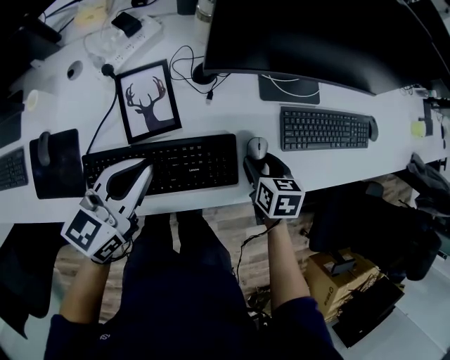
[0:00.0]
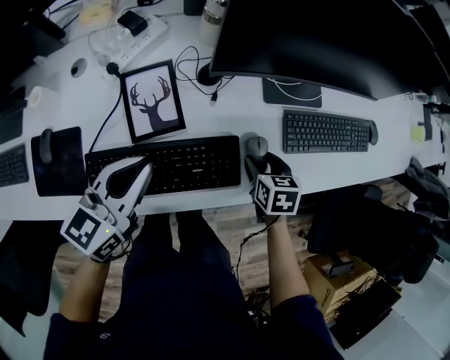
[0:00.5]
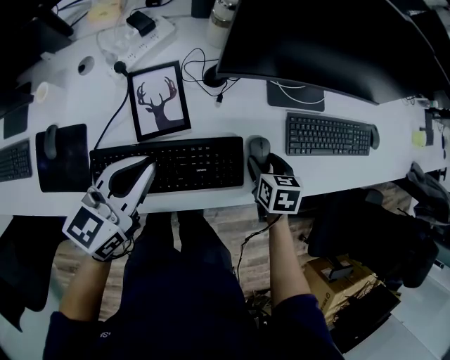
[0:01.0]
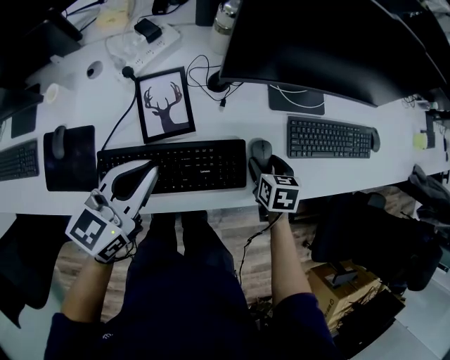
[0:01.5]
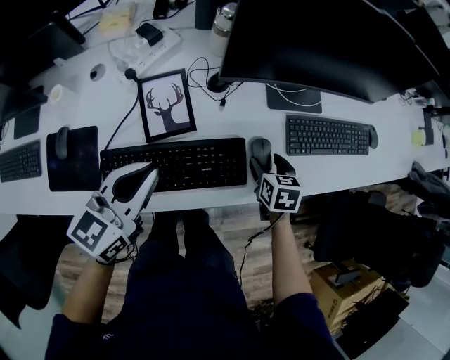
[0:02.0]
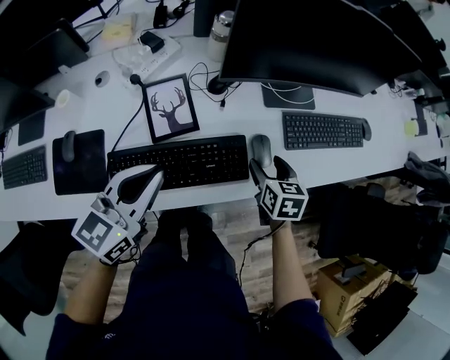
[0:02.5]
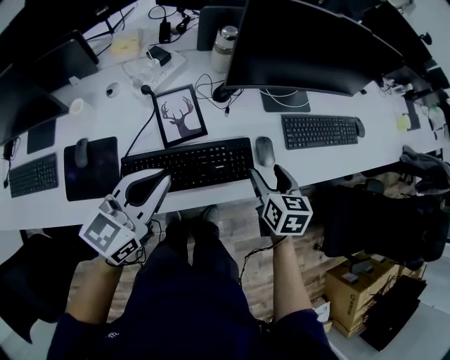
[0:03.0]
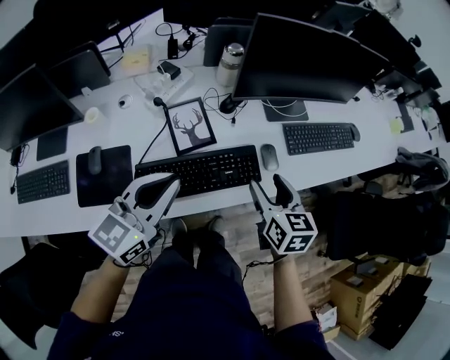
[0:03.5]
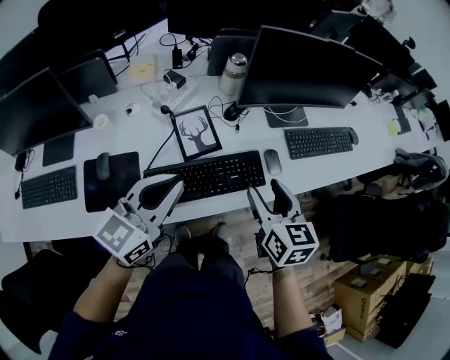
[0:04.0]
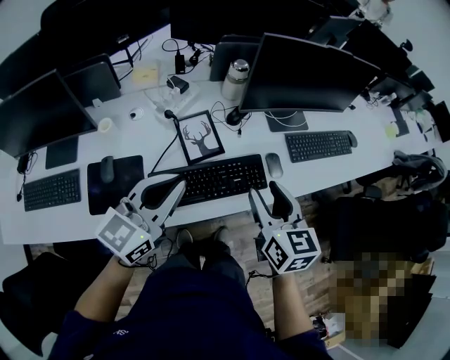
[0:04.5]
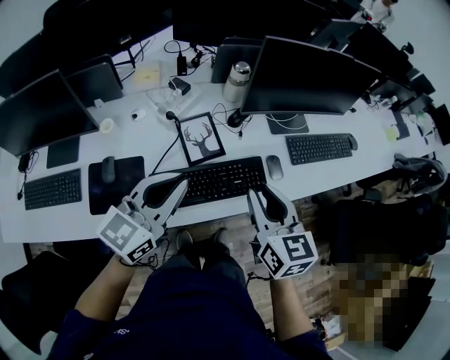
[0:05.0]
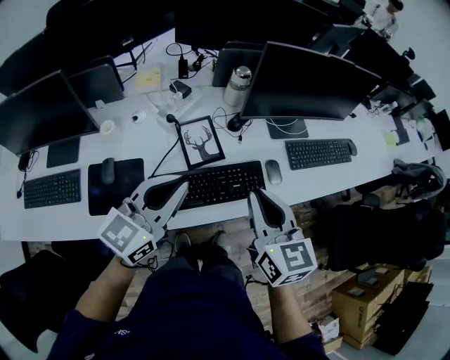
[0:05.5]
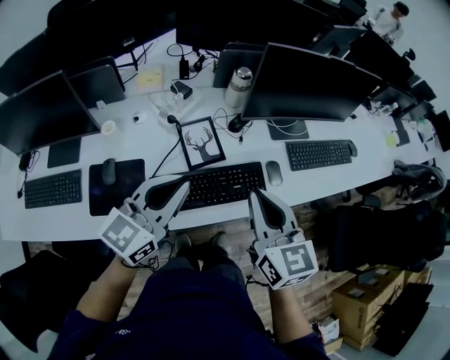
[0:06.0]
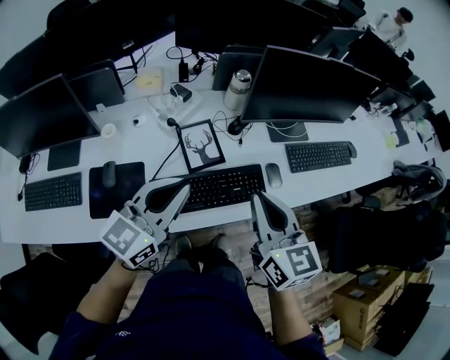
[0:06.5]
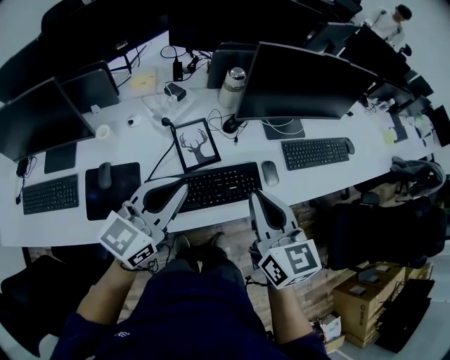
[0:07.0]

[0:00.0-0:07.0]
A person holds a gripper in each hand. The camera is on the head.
0:00.0 to 0:02.0: The grippers stay close to where they were, moving slightly.
0:02.0 to 0:03.5: The left gripper travels upward and backward by about 10 cm, while the right gripper goes approximately 25 cm upward and backward, and swivels roughly 20 degrees.
0:03.5 to 0:05.0: The right gripper shifts about 10 cm upward and to the left, and closes up.
0:05.0 to 0:07.0: The right gripper closes its fingers.

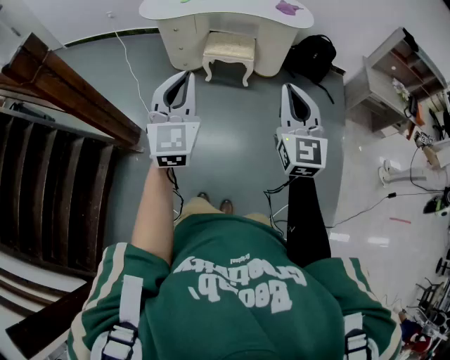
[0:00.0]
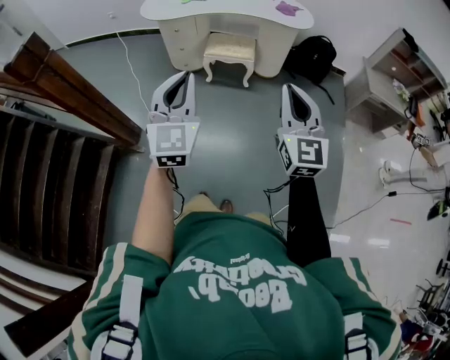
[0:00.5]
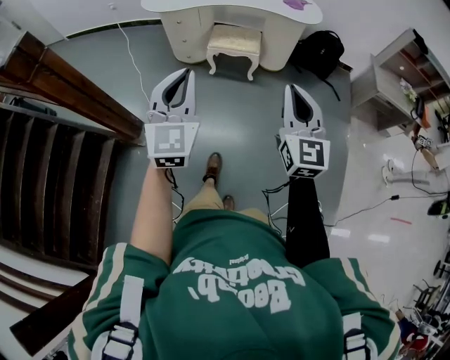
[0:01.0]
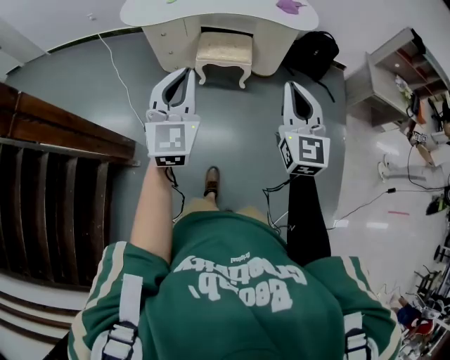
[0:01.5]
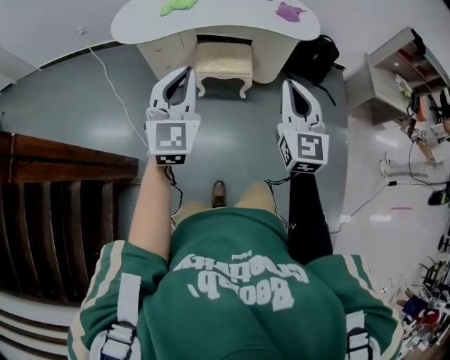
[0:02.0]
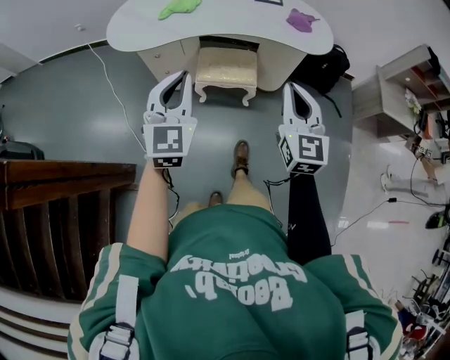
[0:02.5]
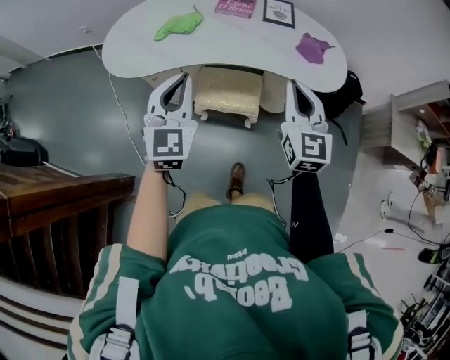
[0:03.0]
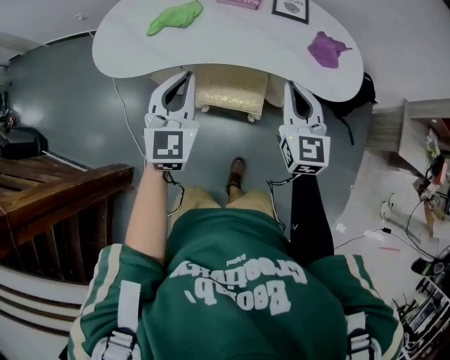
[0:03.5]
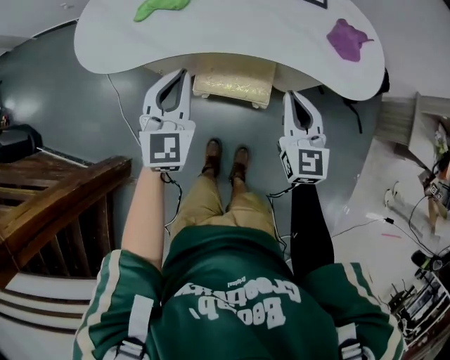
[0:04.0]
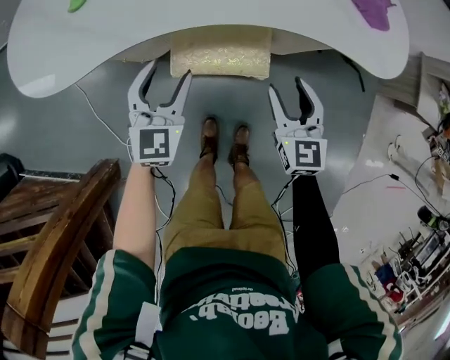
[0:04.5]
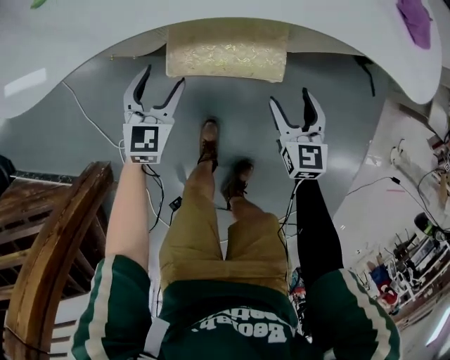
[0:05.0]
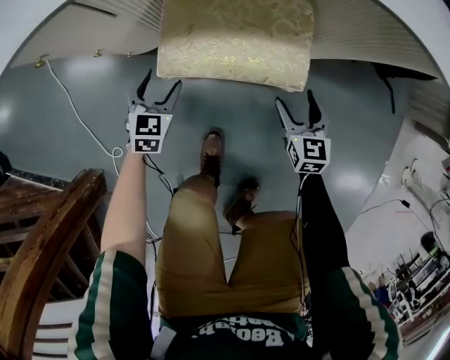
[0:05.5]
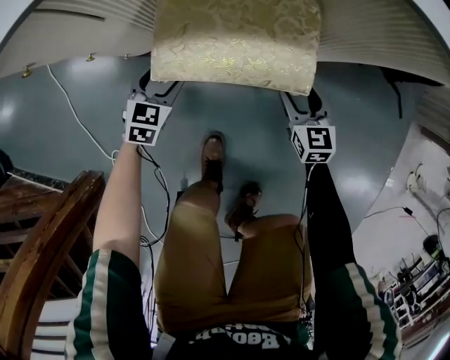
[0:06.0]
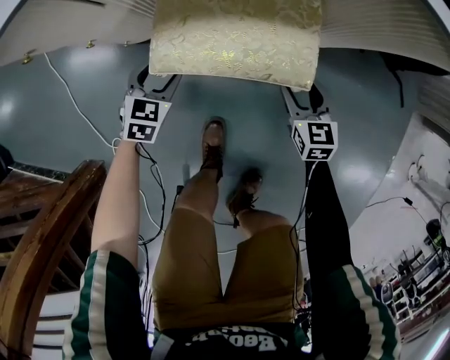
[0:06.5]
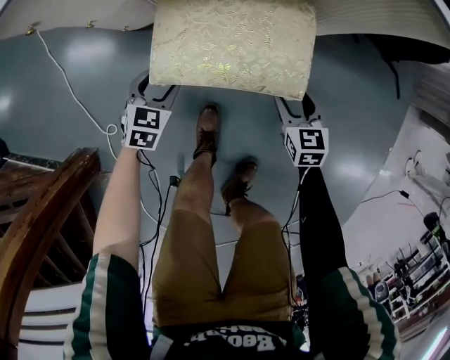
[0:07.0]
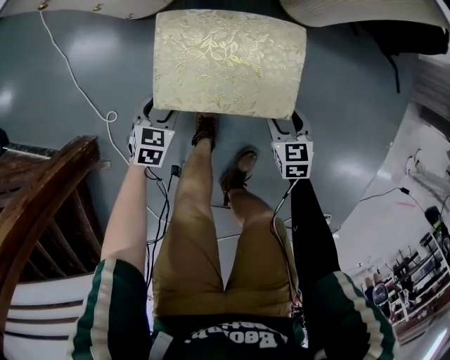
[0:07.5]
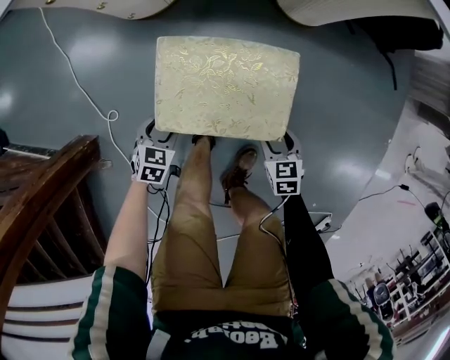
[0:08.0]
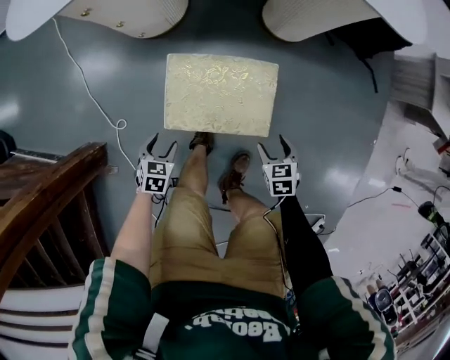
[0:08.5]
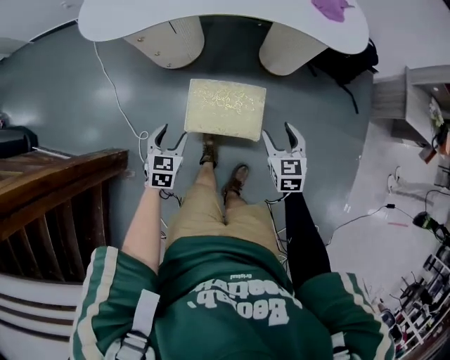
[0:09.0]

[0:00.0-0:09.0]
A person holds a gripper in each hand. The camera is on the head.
0:00.0 to 0:02.0: Both grippers travel together forward, some 30 cm.
0:02.0 to 0:04.5: The grippers both shift forward and downward by roughly 50 cm. The right gripper swivels some 20 degrees, and opens. Meanwhile the left gripper changes its angle by approximately 20 degrees, and opens its fingers.
0:04.5 to 0:07.0: Both grippers move downward, roughly 35 cm. The left gripper angles its fingers downward, by approximately 30 degrees, while the right gripper turns by about 20 degrees.
0:07.0 to 0:09.0: Both grippers move upward and backward, about 40 cm.

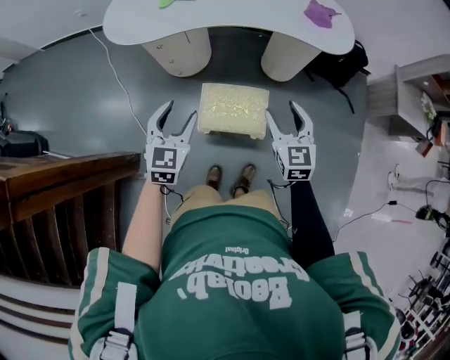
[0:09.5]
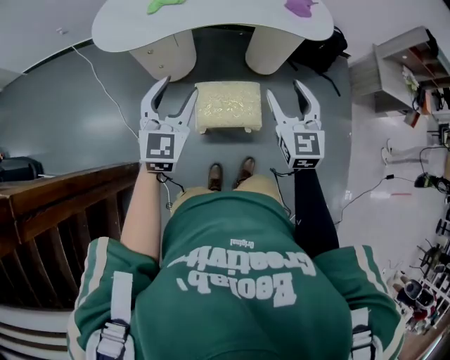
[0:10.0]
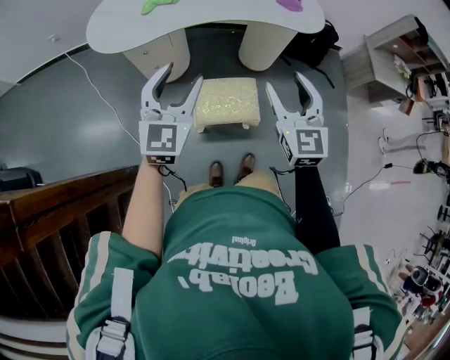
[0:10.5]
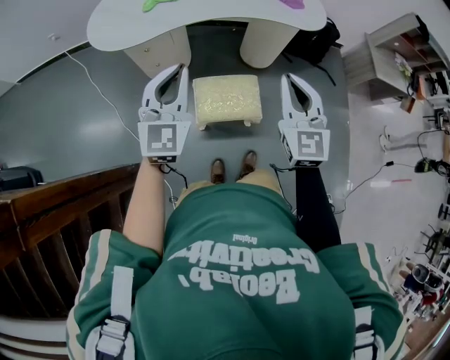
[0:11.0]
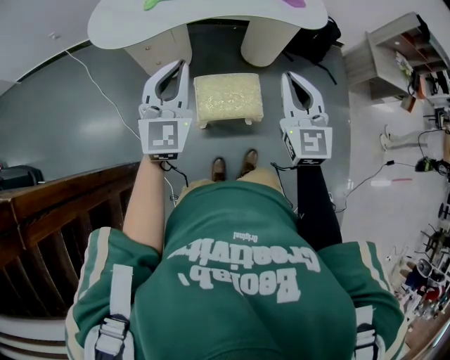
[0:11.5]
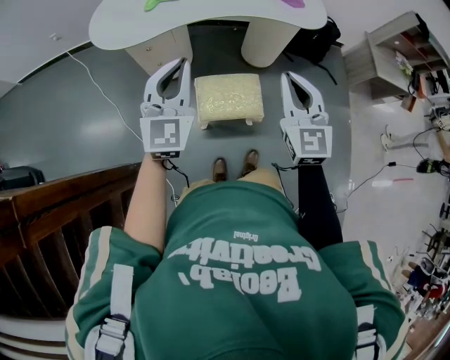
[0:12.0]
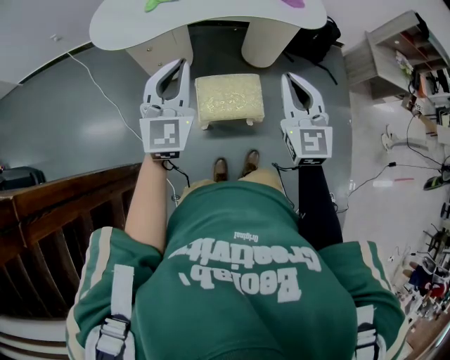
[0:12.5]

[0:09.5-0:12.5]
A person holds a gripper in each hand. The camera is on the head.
0:09.5 to 0:11.0: The grippers both shift upward by some 15 cm. The right gripper closes its fingers; the left gripper turns by approximately 20 degrees, and closes its fingers.
0:11.0 to 0:12.5: The two grippers keep their place.

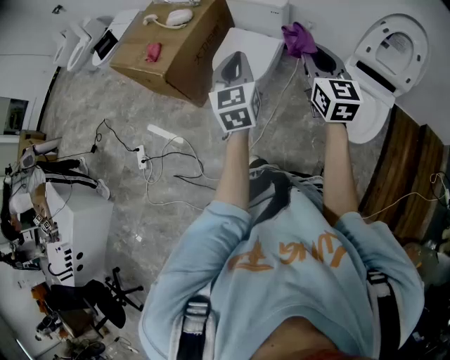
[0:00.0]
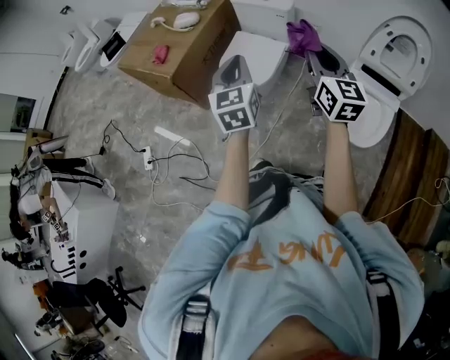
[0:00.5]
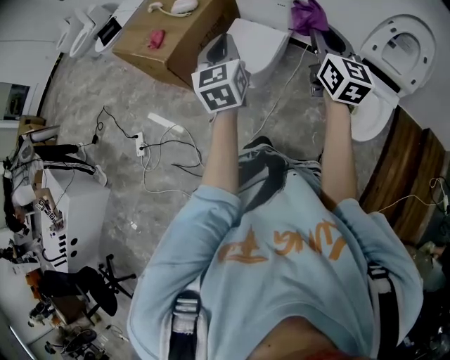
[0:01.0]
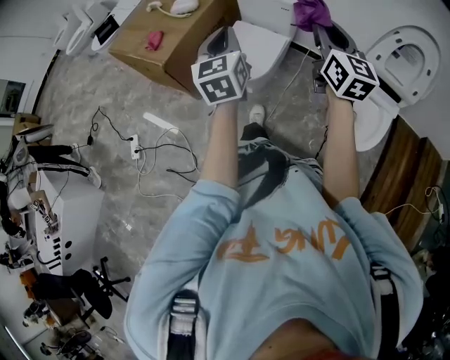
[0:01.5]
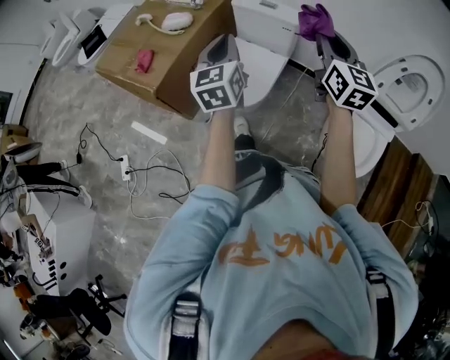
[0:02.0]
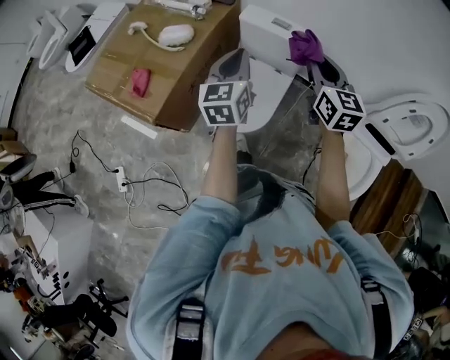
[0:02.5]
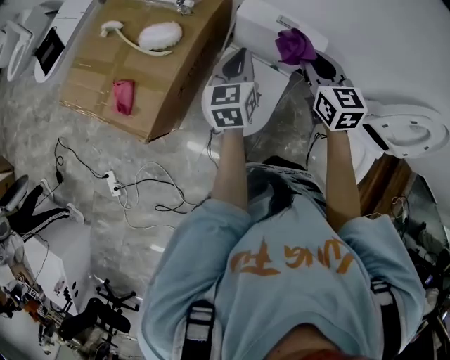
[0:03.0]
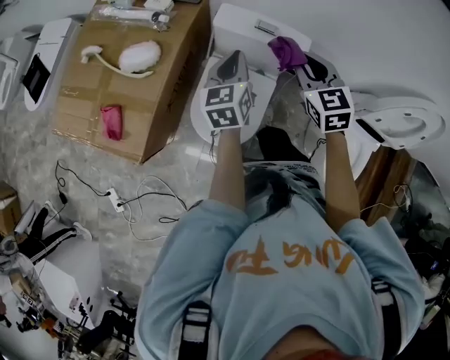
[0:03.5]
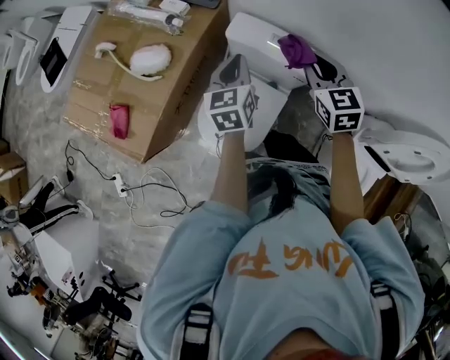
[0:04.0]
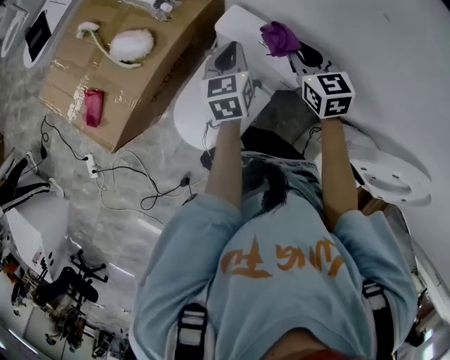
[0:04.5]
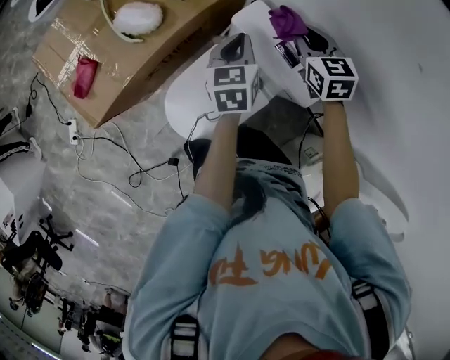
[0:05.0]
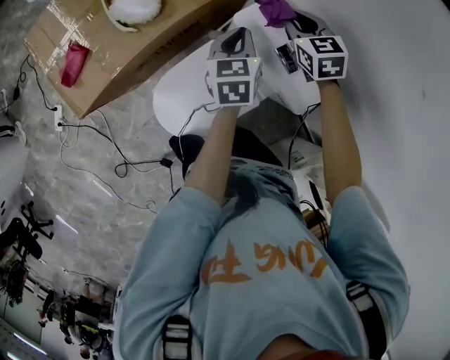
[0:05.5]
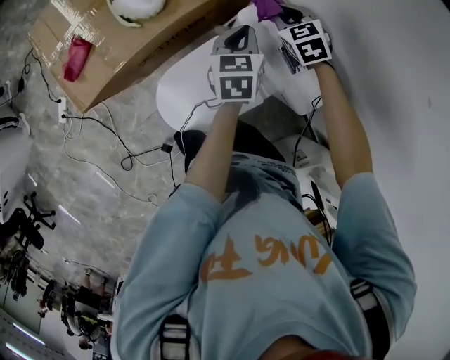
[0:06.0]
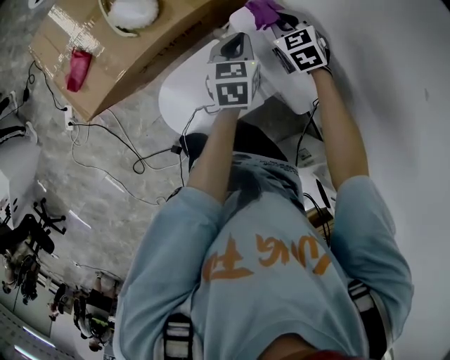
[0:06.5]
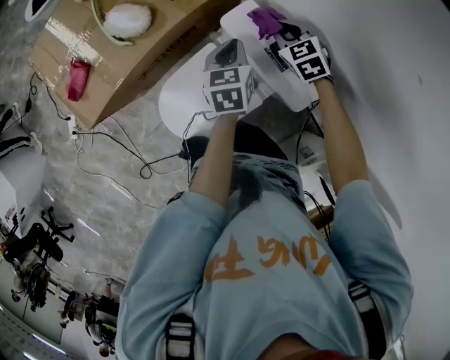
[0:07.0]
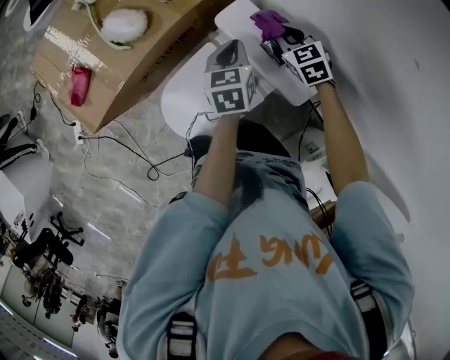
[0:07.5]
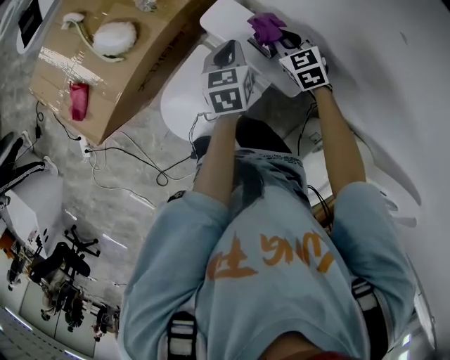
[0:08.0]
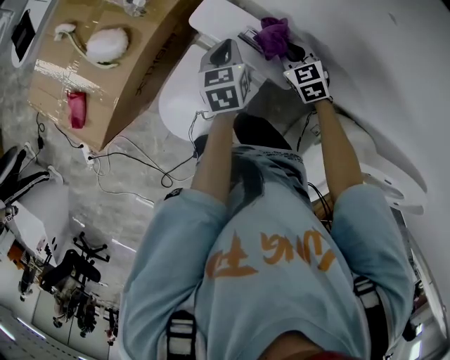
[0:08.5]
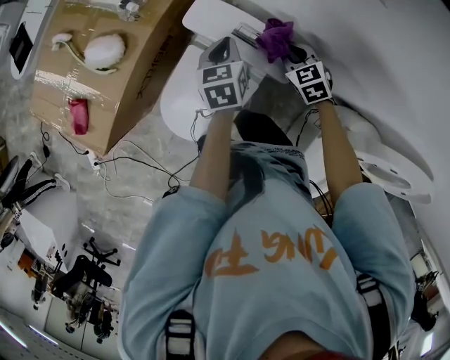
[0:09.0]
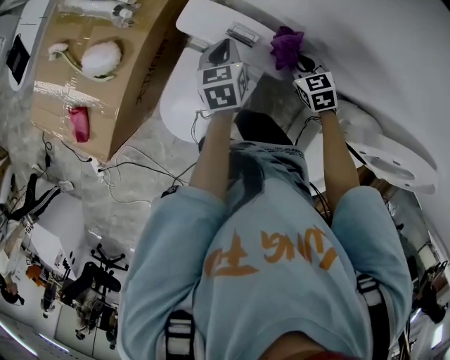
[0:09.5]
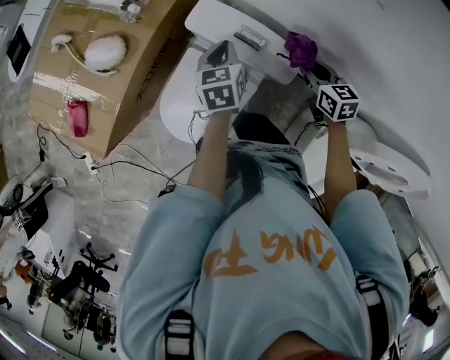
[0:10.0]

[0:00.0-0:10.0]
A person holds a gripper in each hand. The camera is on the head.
0:00.0 to 0:02.0: The grippers both shift forward by approximately 20 cm.
0:02.0 to 0:04.0: The pair of grippers is taken forward, roughly 40 cm. The right gripper goes about 15 cm downward, and tips its fingers downward by roughly 30 degrees; the left gripper rotates approximately 20 degrees.
0:04.0 to 0:06.0: The right gripper moves roughly 30 cm, and turns by approximately 40 degrees, while the left gripper heads downward, covering some 10 cm, and turns by some 20 degrees.
0:06.0 to 0:08.0: The right gripper goes roughly 15 cm backward and to the right. Meanwhile the left gripper moves to the right, some 5 cm.
0:08.0 to 0:10.0: The right gripper heads backward and to the right, covering roughly 15 cm, and rotates roughly 30 degrees.
